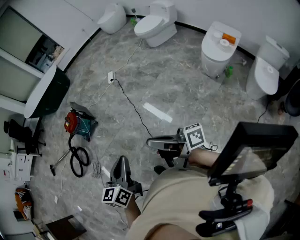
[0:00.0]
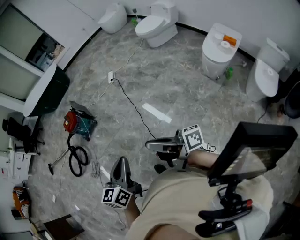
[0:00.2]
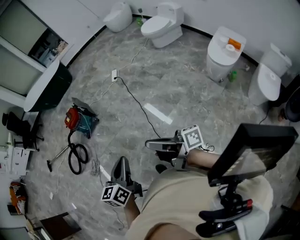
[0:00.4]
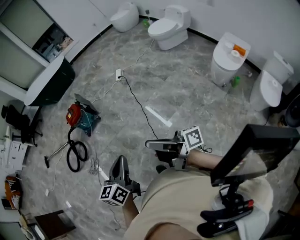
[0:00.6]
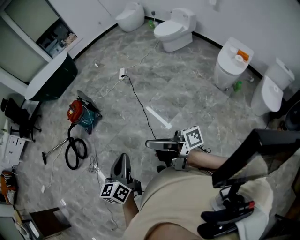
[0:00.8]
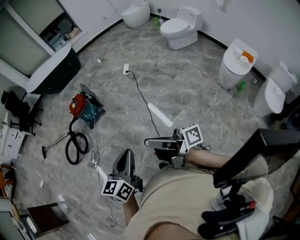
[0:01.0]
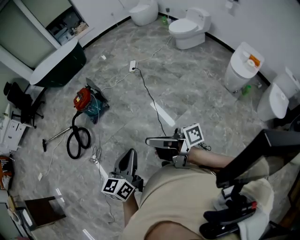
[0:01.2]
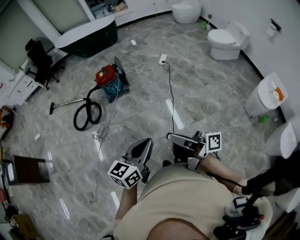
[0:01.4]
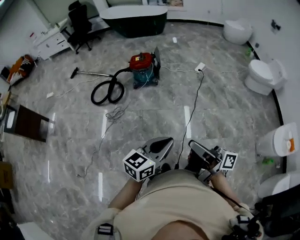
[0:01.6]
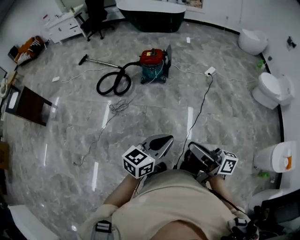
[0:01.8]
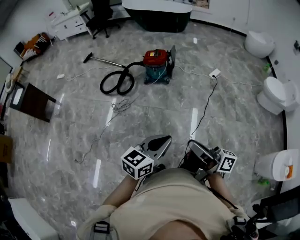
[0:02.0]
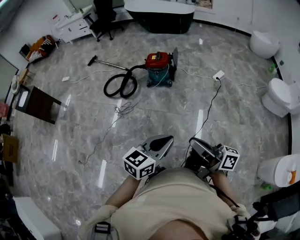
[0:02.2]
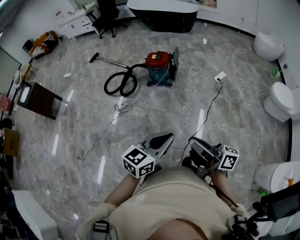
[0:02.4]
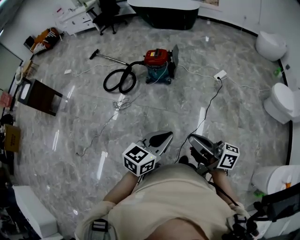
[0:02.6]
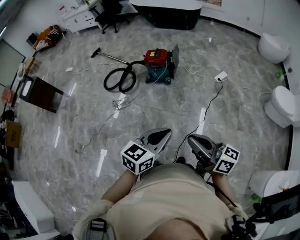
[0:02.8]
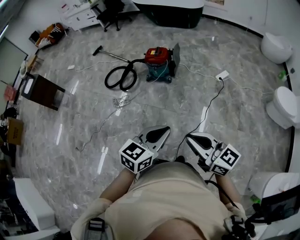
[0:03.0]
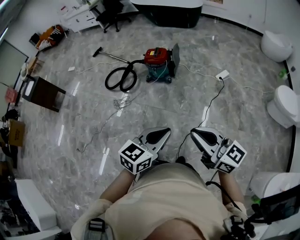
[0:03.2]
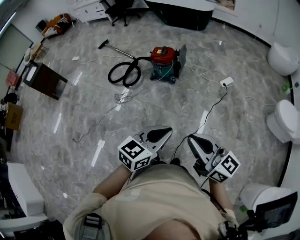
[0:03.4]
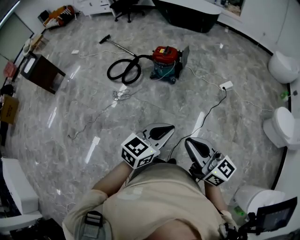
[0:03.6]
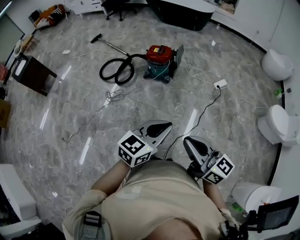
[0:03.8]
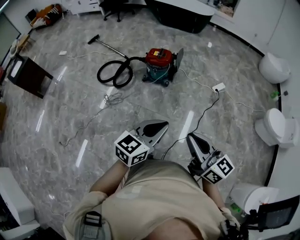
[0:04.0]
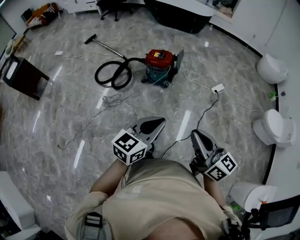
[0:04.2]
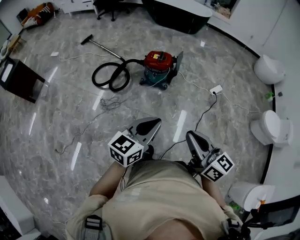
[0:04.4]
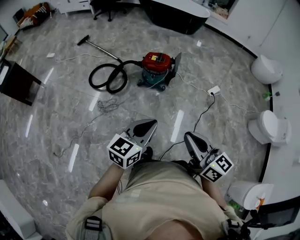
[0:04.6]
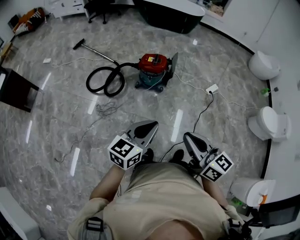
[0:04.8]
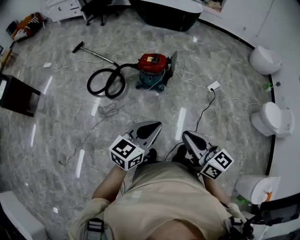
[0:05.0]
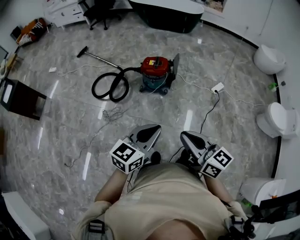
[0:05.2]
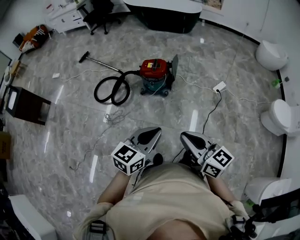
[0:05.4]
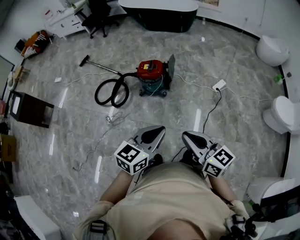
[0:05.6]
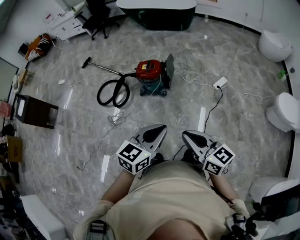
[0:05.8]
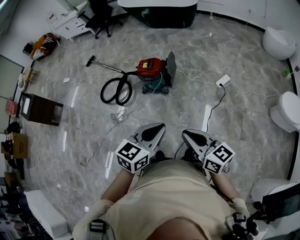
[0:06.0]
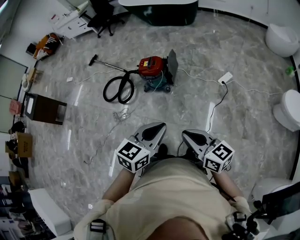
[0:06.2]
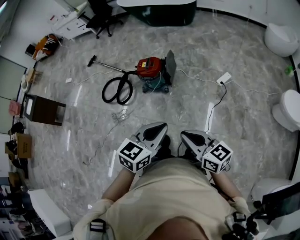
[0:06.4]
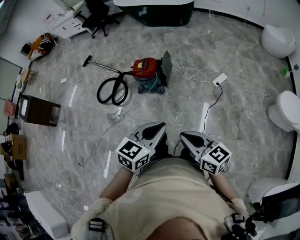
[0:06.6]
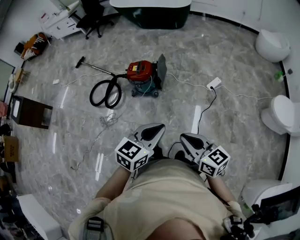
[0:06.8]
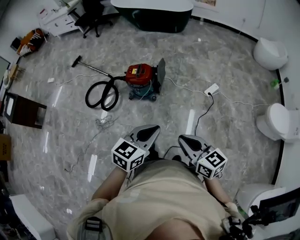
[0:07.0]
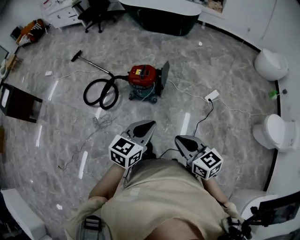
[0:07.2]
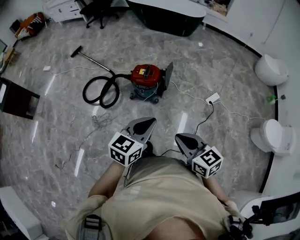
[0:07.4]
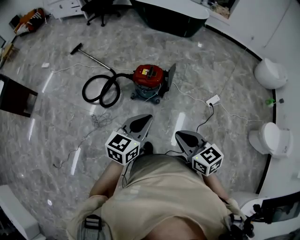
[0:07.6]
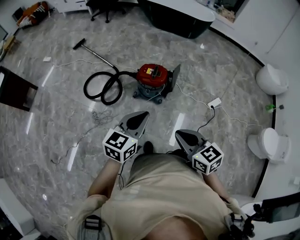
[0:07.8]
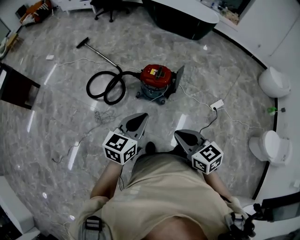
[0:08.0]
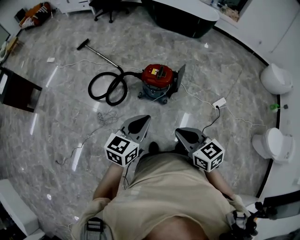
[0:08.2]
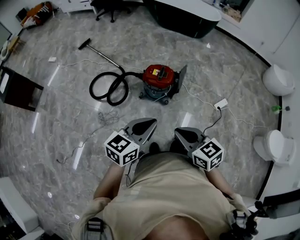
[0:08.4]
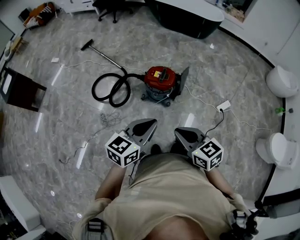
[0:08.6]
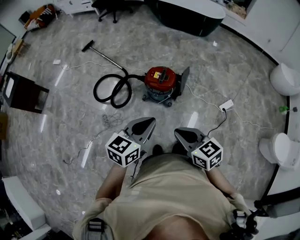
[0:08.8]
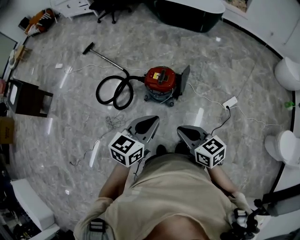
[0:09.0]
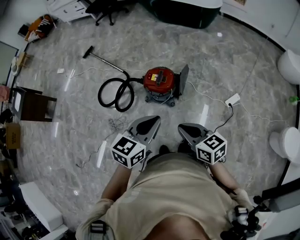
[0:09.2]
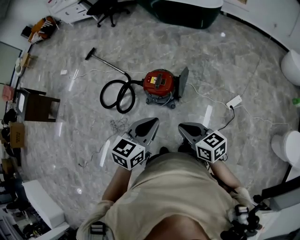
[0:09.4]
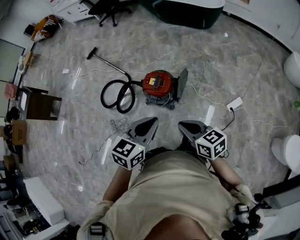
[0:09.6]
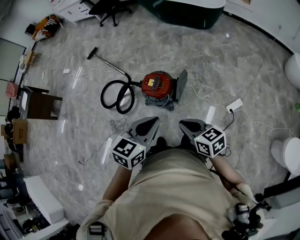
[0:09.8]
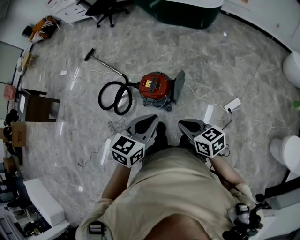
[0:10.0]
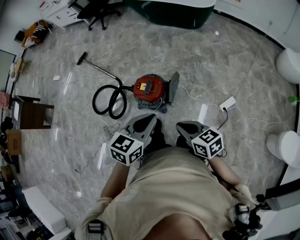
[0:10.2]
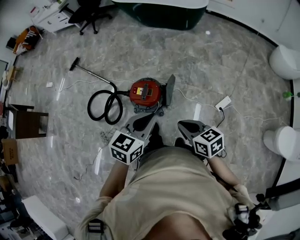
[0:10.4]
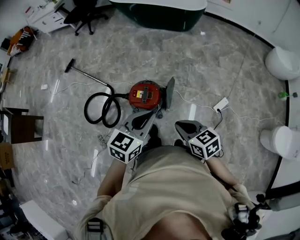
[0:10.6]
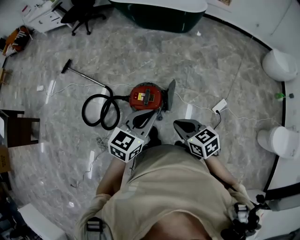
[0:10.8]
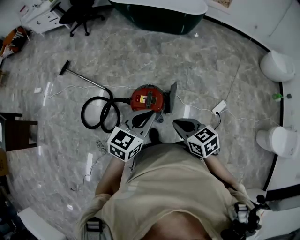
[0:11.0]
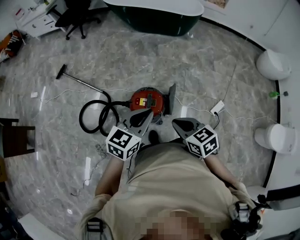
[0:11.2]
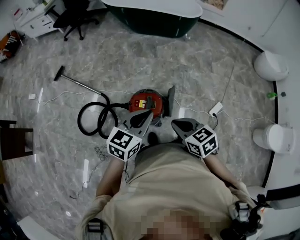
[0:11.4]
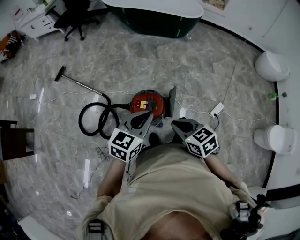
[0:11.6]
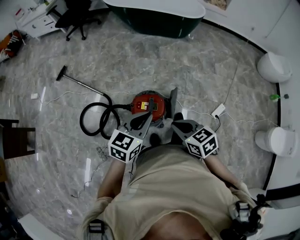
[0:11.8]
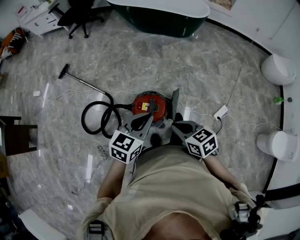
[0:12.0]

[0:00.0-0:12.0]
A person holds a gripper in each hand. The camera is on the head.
0:00.0 to 0:01.6: The two grippers go about 25 cm to the left and forward.
0:01.6 to 0:03.0: The grippers both shift to the right and forward by roughly 25 cm. The right gripper rotates around the line of its fingers by approximately 40 degrees, counterclockwise from behind, while the left gripper swivels some 20 degrees.
0:03.0 to 0:04.4: The right gripper is displaced forward and to the left by roughly 25 cm, while the left gripper shifts about 25 cm to the left and forward.
0:04.4 to 0:06.0: The grippers both shift to the right by some 25 cm.
0:06.0 to 0:07.6: Both grippers move forward and to the left, roughly 25 cm. The right gripper turns by some 30 degrees.
0:07.6 to 0:09.0: Both grippers travel together forward, some 10 cm.
0:09.0 to 0:10.4: The right gripper moves to the right and forward, approximately 20 cm, while the left gripper is displaced forward and to the right by approximately 20 cm.
0:10.4 to 0:12.0: The left gripper travels forward and to the left by roughly 20 cm, while the right gripper travels to the left and forward by some 20 cm.

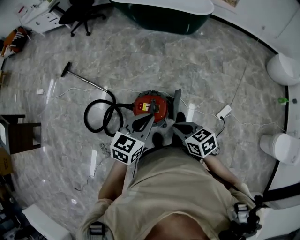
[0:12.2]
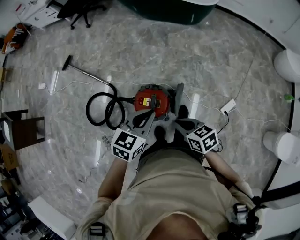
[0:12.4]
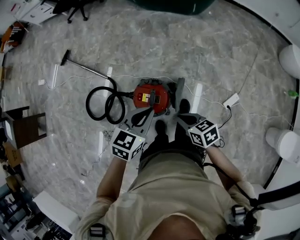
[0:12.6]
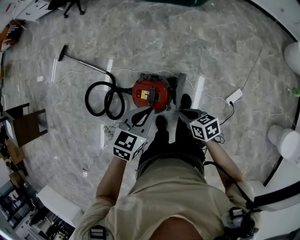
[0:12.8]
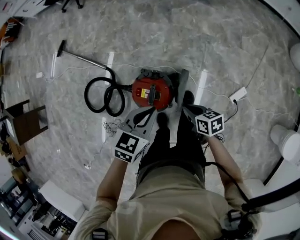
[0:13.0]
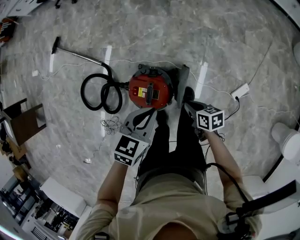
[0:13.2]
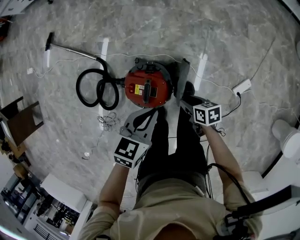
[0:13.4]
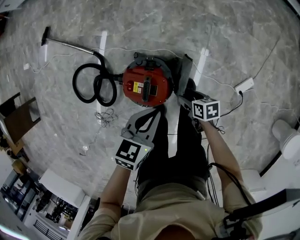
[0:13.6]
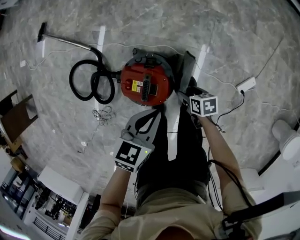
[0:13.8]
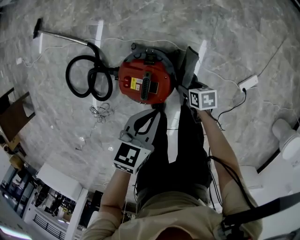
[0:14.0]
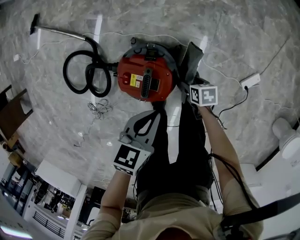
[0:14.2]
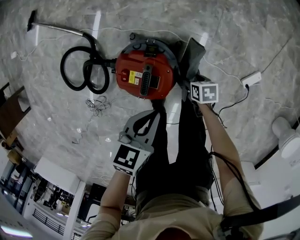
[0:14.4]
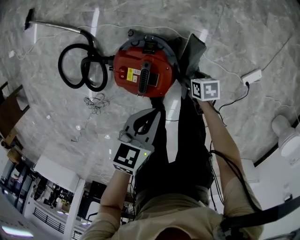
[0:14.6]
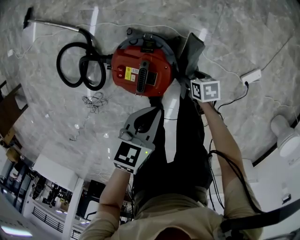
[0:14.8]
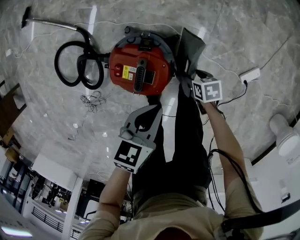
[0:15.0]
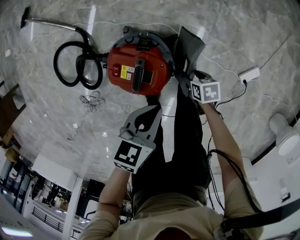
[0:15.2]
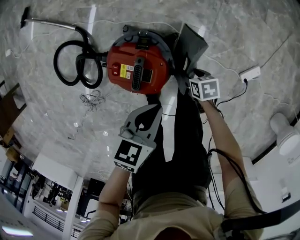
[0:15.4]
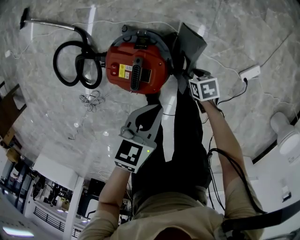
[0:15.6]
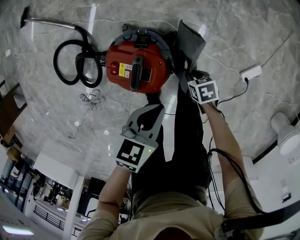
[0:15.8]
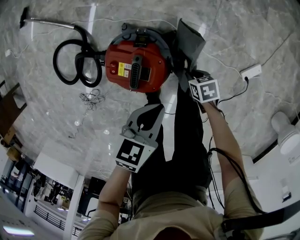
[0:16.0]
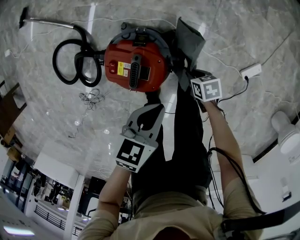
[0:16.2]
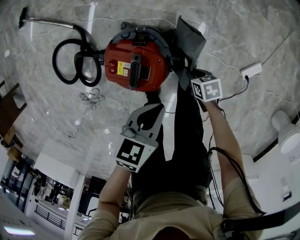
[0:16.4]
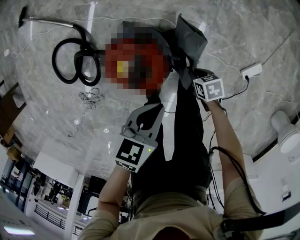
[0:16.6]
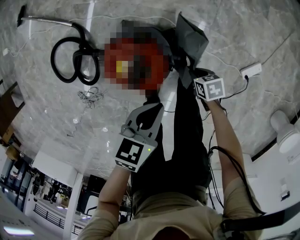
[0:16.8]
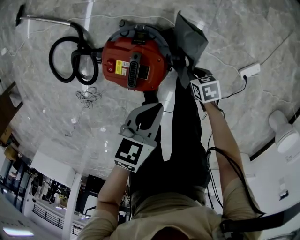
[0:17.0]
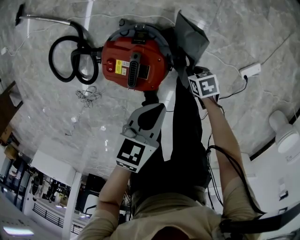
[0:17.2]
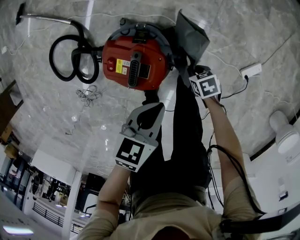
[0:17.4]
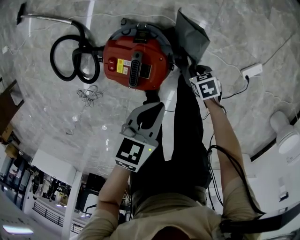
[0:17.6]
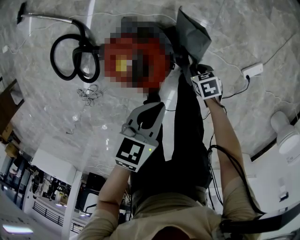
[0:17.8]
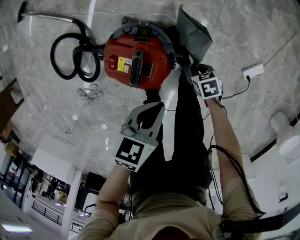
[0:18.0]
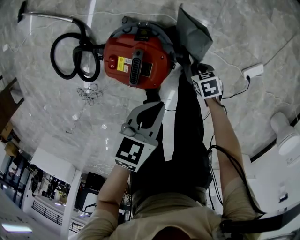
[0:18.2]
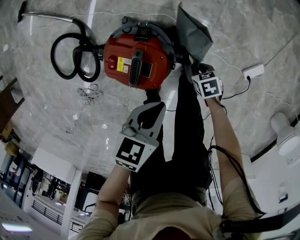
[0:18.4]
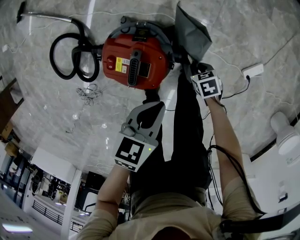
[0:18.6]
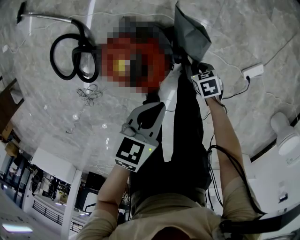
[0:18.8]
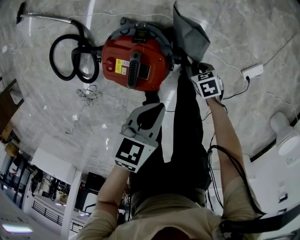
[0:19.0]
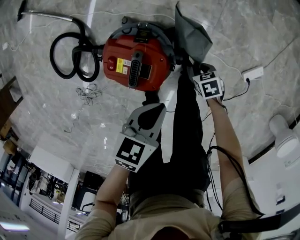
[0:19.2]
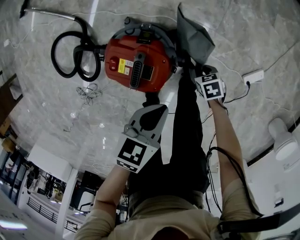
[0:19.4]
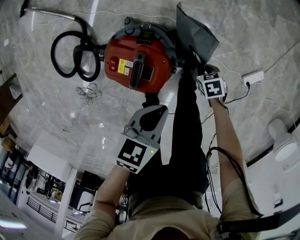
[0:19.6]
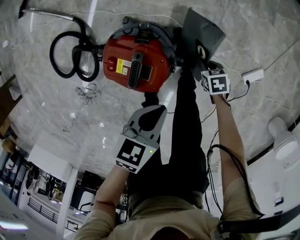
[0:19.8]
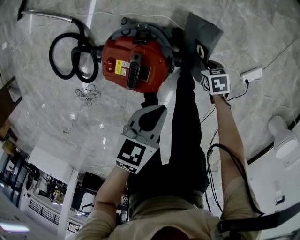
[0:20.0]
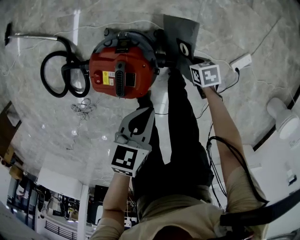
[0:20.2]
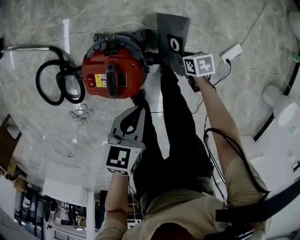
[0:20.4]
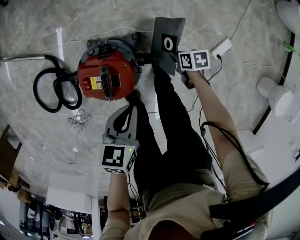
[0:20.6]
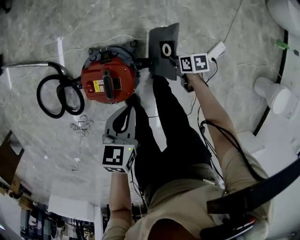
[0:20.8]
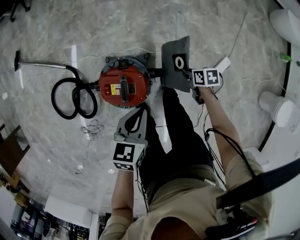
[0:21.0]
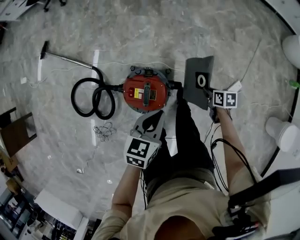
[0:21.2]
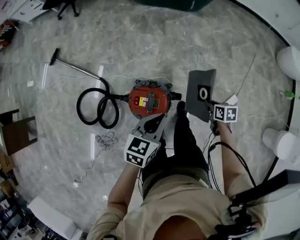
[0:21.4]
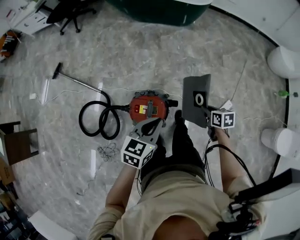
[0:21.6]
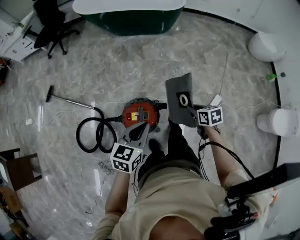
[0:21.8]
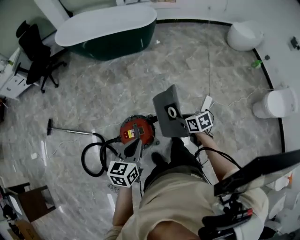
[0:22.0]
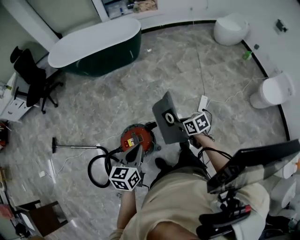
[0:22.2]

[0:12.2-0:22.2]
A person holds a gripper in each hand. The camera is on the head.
0:12.2 to 0:13.6: The left gripper is displaced downward by approximately 25 cm, and rotates roughly 20 degrees. Meanwhile the right gripper heads downward, covering approximately 40 cm, swivels some 30 degrees, and opens.
0:13.6 to 0:15.0: The grippers both shift downward by roughly 10 cm.
0:15.0 to 0:16.4: The right gripper closes.
0:16.4 to 0:19.4: The grippers move only a little.
0:19.4 to 0:20.8: Both grippers move upward, about 5 cm. The right gripper rotates roughly 40 degrees.
0:20.8 to 0:22.2: Both grippers move upward, some 35 cm. The left gripper changes its angle by approximately 20 degrees. Meanwhile the right gripper changes its angle by some 30 degrees.

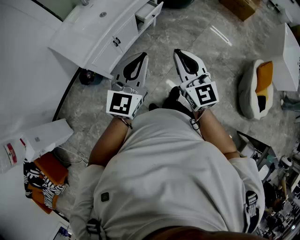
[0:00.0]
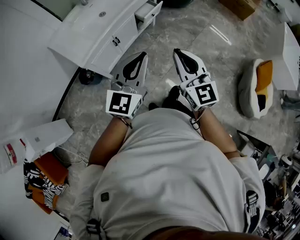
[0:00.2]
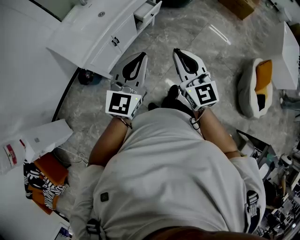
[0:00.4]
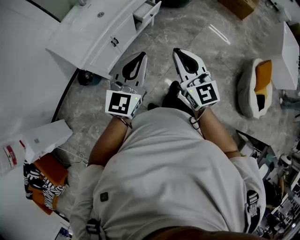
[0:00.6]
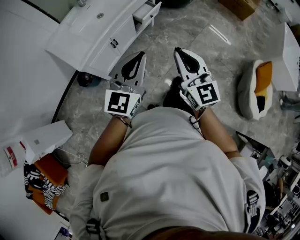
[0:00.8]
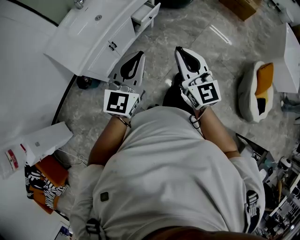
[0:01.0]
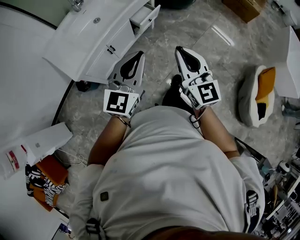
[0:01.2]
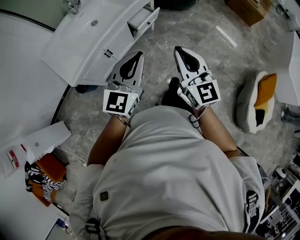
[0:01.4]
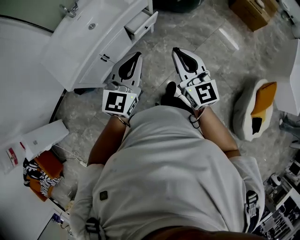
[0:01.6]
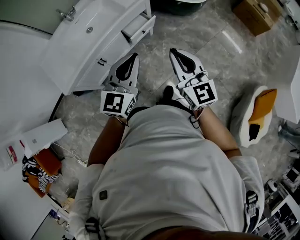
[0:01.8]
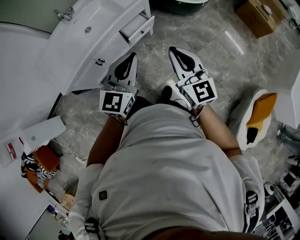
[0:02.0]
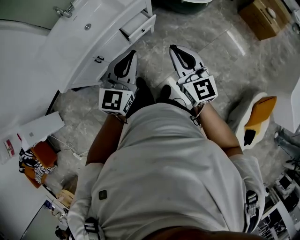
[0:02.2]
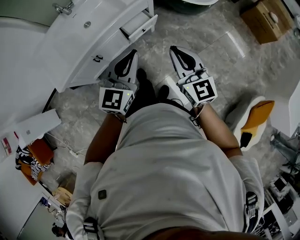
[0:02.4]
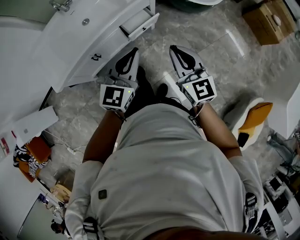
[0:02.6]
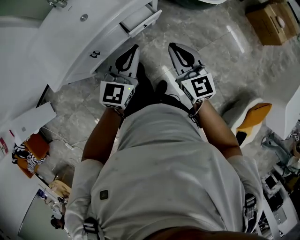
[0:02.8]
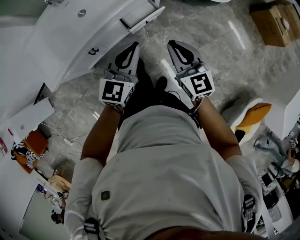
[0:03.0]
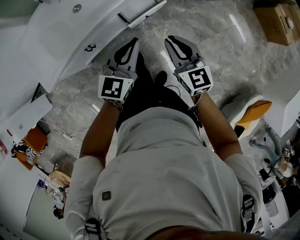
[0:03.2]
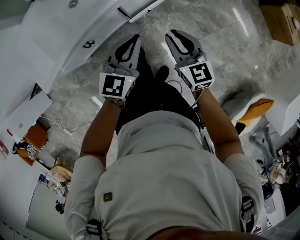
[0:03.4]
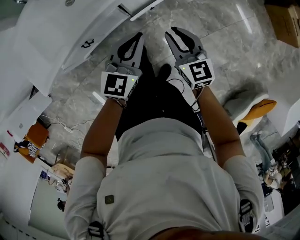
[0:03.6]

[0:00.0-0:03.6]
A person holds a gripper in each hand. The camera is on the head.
0:00.0 to 0:01.8: Both grippers move forward and to the right, some 35 cm.
0:01.8 to 0:03.6: Both grippers travel together downward and forward, about 35 cm. The right gripper swivels approximately 20 degrees.
